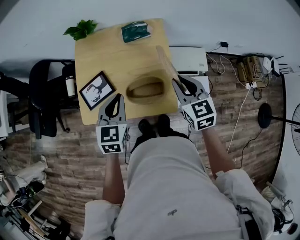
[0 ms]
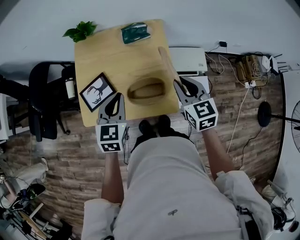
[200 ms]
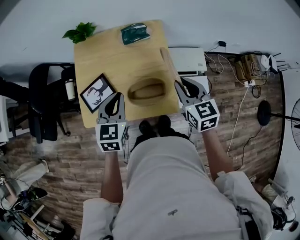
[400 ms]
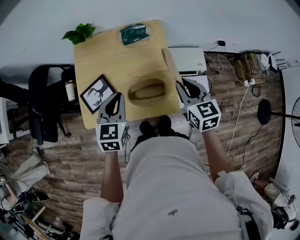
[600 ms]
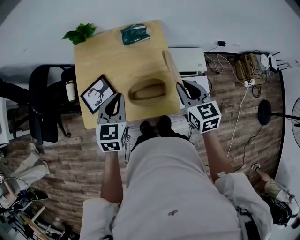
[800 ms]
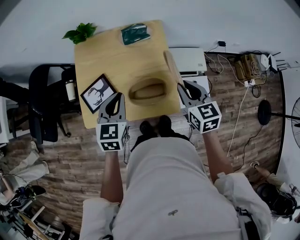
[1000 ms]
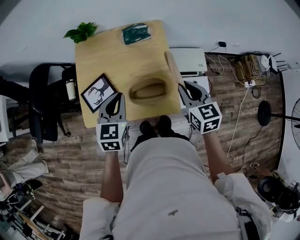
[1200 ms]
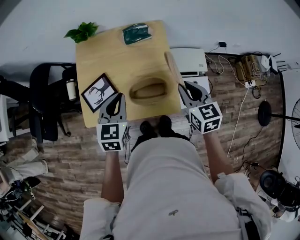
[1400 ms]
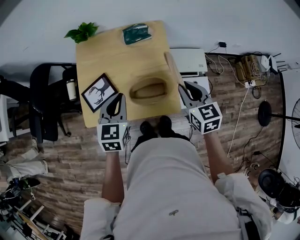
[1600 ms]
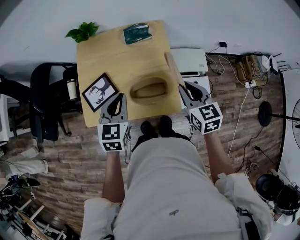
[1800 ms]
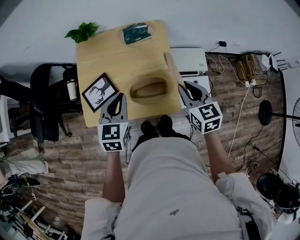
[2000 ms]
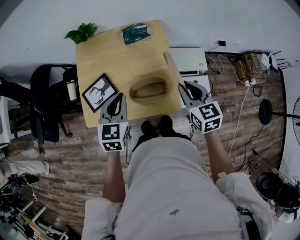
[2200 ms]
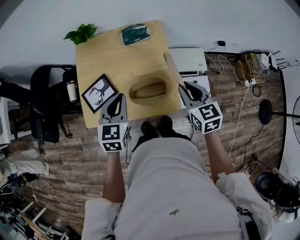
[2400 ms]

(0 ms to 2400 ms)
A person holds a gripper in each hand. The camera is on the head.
0 ms - 1200 ms: The grippers stay close to where they were, moving slightly.
1200 ms - 2400 ms: Both grippers stay put.

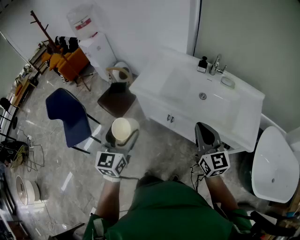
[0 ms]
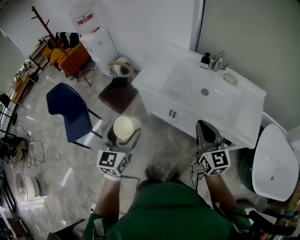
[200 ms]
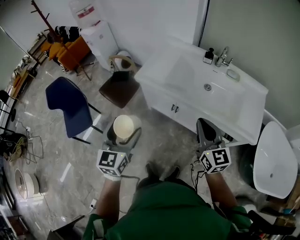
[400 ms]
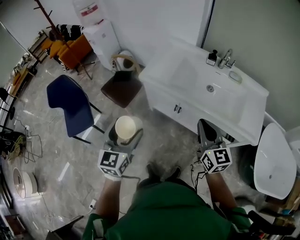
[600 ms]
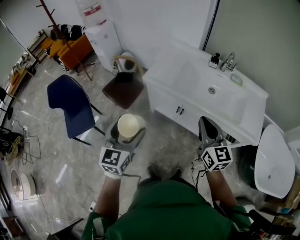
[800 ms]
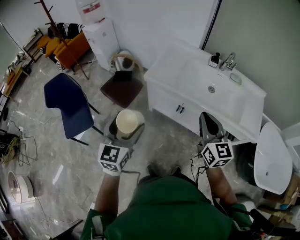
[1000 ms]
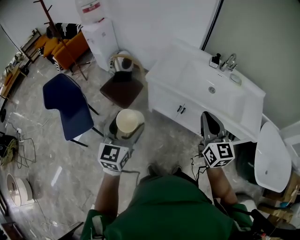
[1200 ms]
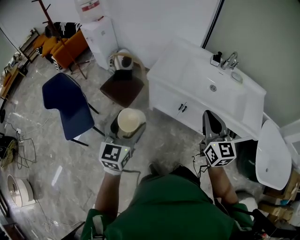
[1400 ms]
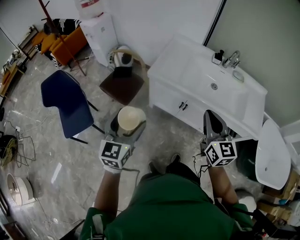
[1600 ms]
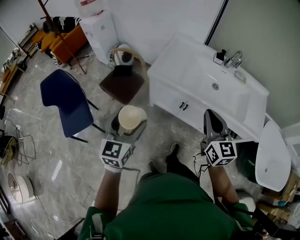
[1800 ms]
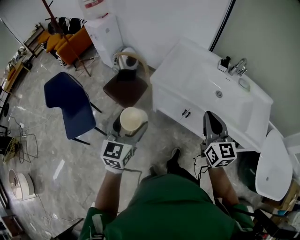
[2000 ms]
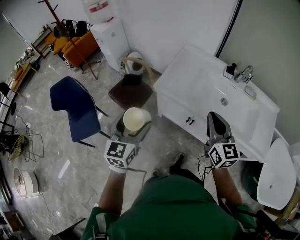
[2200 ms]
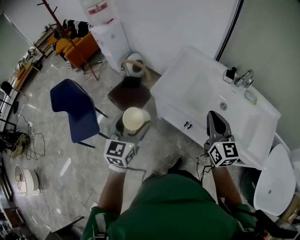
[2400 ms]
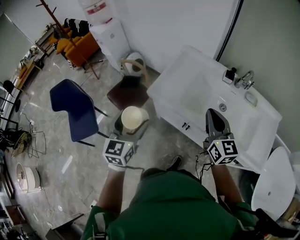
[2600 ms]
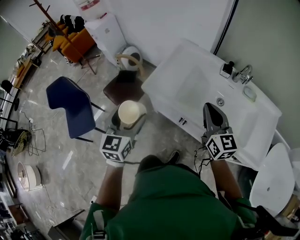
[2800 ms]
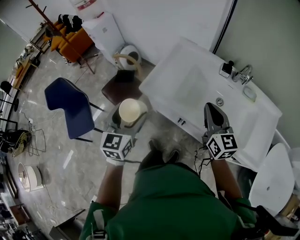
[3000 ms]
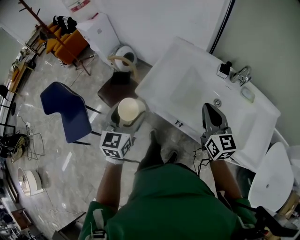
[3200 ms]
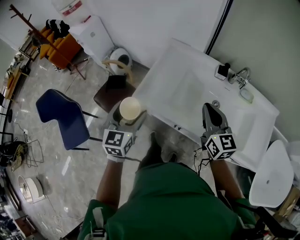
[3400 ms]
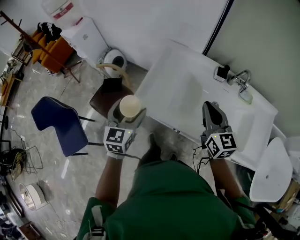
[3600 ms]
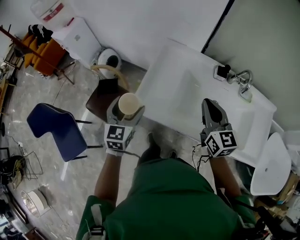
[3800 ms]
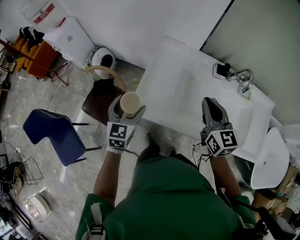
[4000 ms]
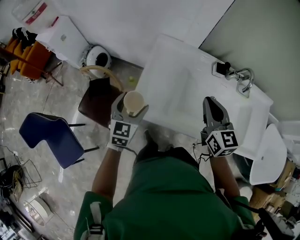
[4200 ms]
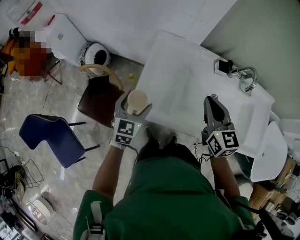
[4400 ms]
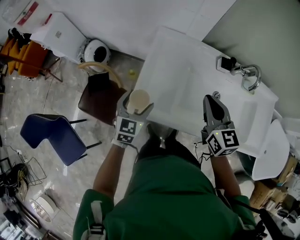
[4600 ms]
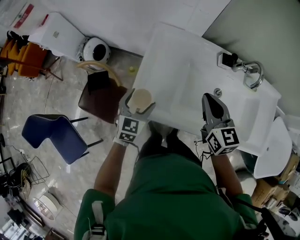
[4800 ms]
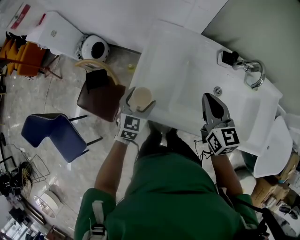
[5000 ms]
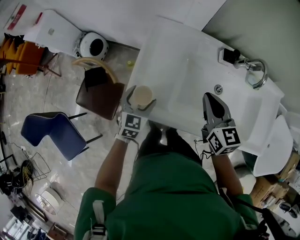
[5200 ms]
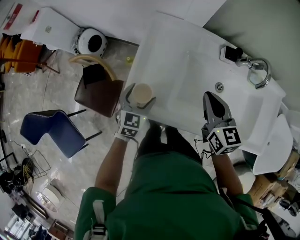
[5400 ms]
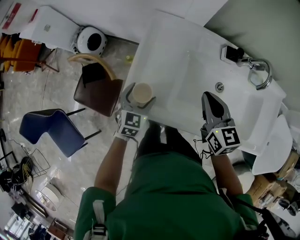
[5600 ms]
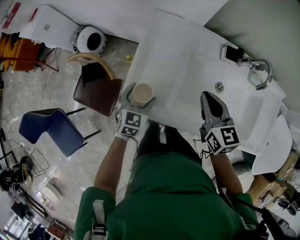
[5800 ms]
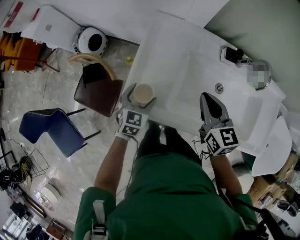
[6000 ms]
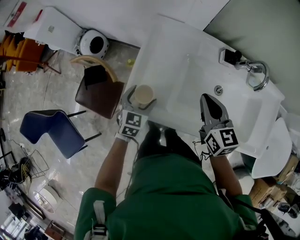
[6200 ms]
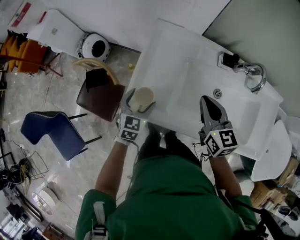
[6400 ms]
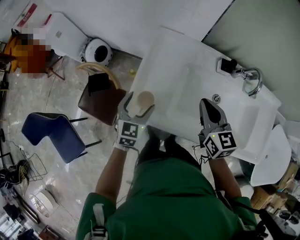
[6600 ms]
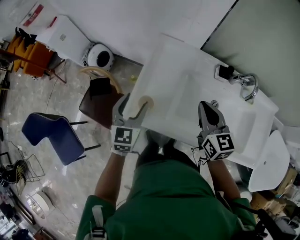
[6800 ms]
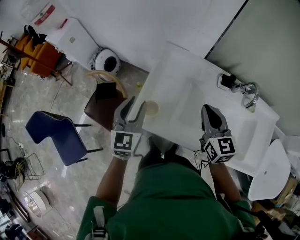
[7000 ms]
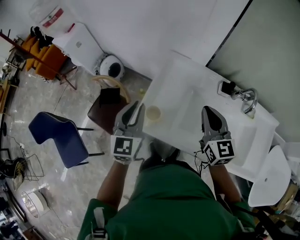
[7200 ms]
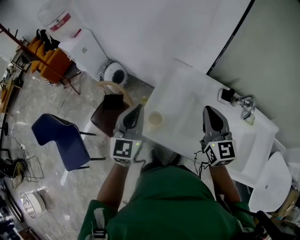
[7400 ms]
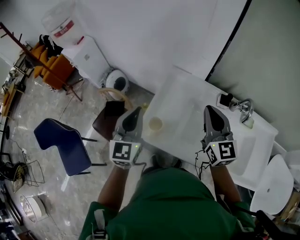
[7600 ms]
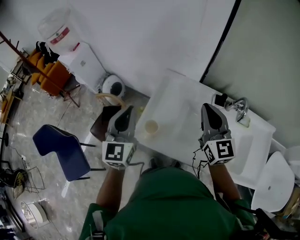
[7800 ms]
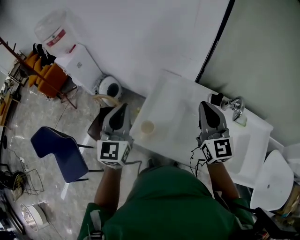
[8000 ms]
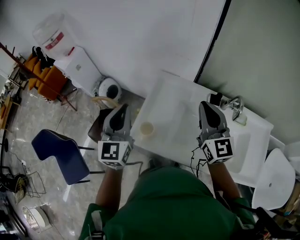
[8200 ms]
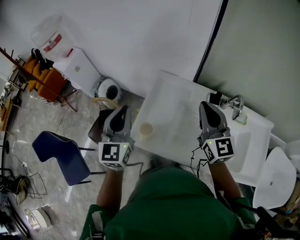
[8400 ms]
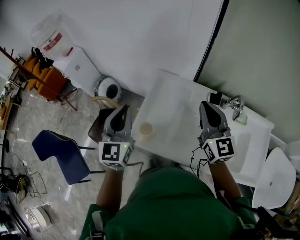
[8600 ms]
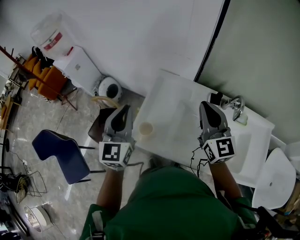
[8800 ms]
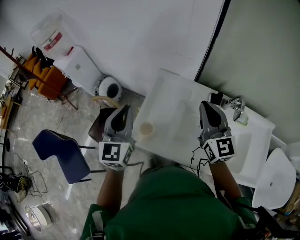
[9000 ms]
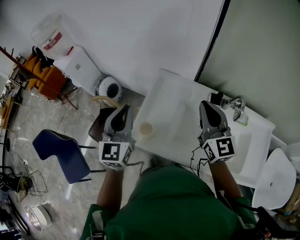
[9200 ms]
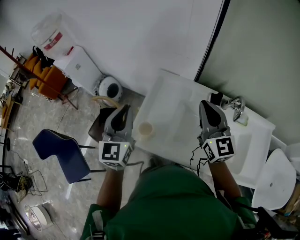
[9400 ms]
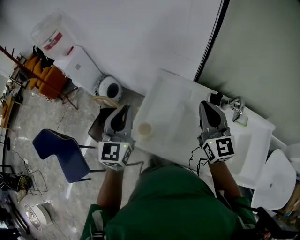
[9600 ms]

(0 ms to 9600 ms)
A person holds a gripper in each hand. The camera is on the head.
0 ms - 1600 ms: Both grippers travel together to the left, approximately 20 cm.
1600 ms - 3200 ms: The grippers both shift forward and to the right by about 30 cm.
3200 ms - 4800 ms: The left gripper heads forward and downward, covering roughly 30 cm, and rotates roughly 30 degrees. Meanwhile the right gripper shifts roughly 20 cm forward and downward.
6400 ms - 8000 ms: The left gripper heads upward, covering approximately 30 cm, tips its fingers upward by roughly 30 degrees, and closes; the right gripper goes about 20 cm upward, and swivels approximately 30 degrees.
8000 ms - 9600 ms: The grippers make only small movements.

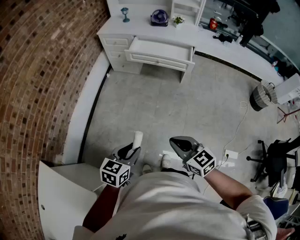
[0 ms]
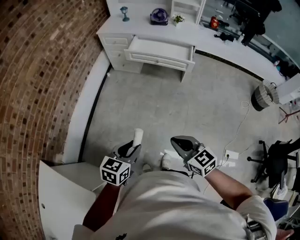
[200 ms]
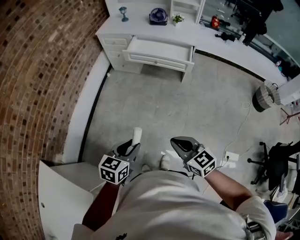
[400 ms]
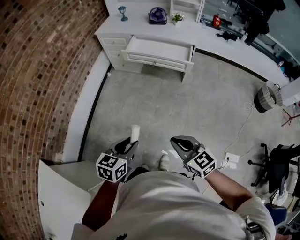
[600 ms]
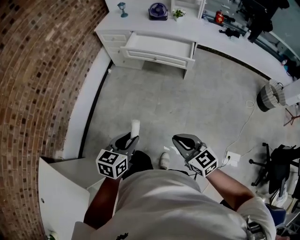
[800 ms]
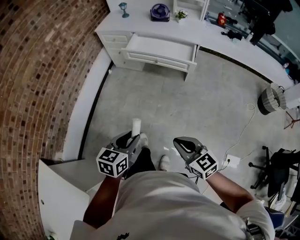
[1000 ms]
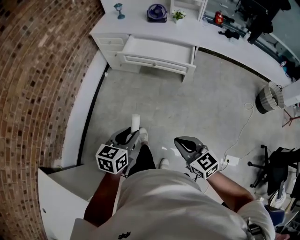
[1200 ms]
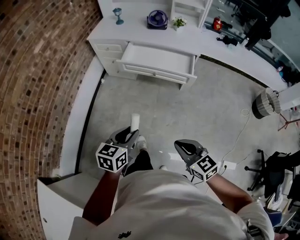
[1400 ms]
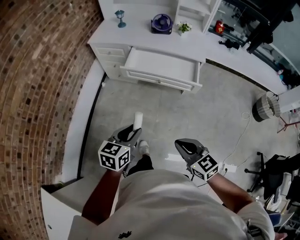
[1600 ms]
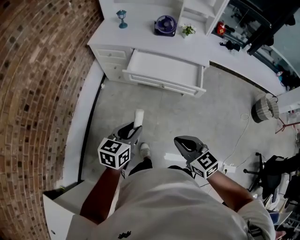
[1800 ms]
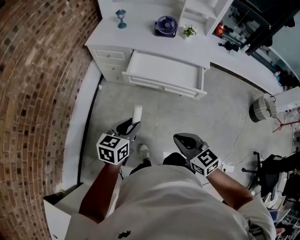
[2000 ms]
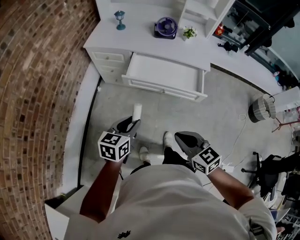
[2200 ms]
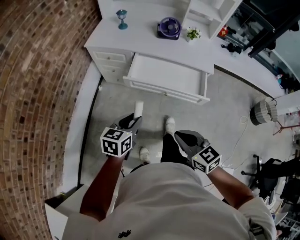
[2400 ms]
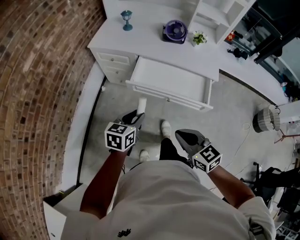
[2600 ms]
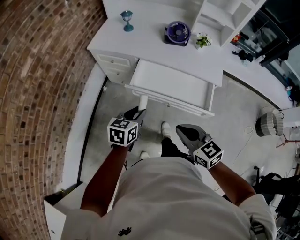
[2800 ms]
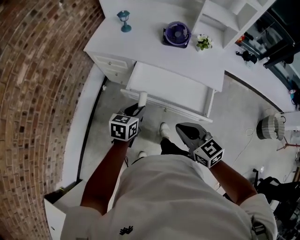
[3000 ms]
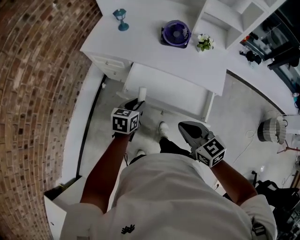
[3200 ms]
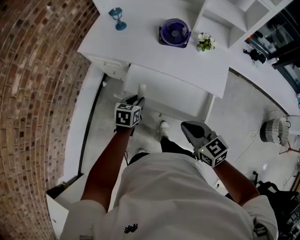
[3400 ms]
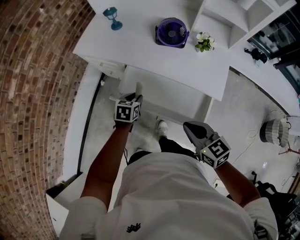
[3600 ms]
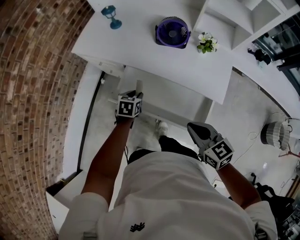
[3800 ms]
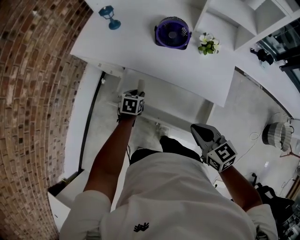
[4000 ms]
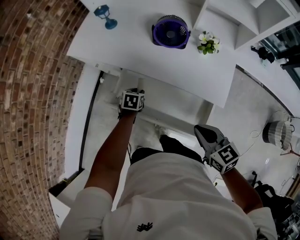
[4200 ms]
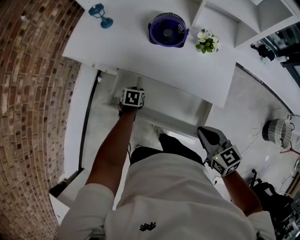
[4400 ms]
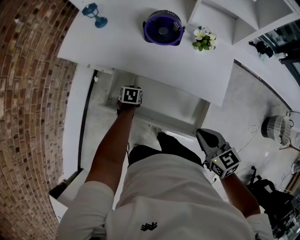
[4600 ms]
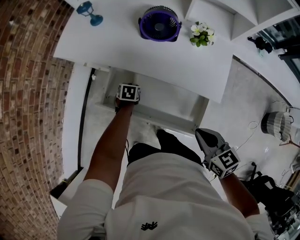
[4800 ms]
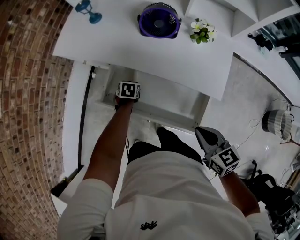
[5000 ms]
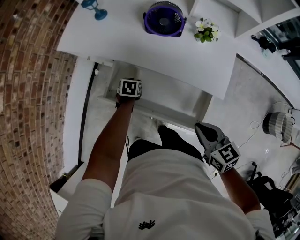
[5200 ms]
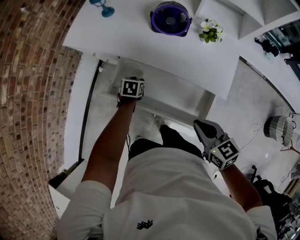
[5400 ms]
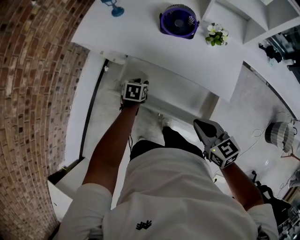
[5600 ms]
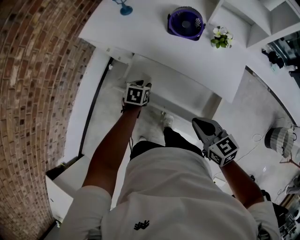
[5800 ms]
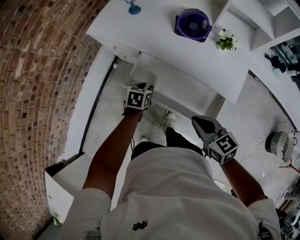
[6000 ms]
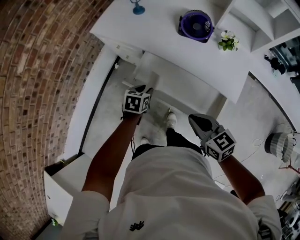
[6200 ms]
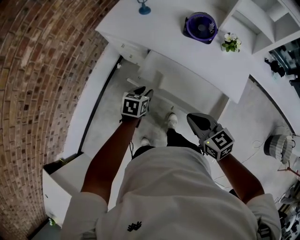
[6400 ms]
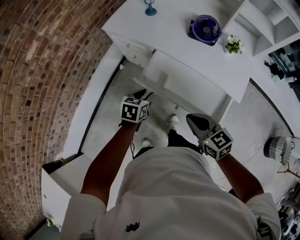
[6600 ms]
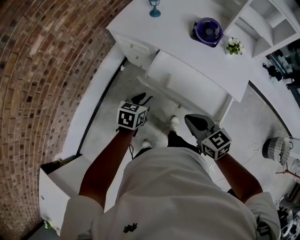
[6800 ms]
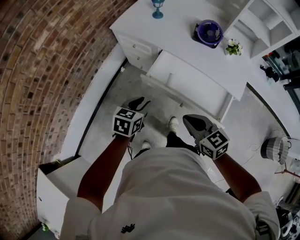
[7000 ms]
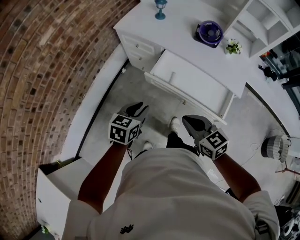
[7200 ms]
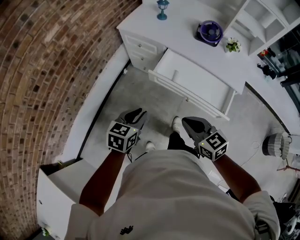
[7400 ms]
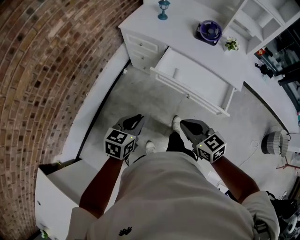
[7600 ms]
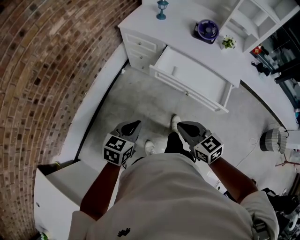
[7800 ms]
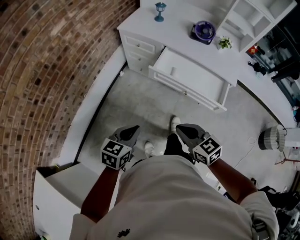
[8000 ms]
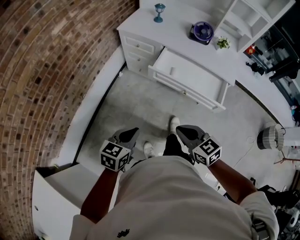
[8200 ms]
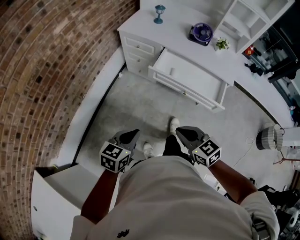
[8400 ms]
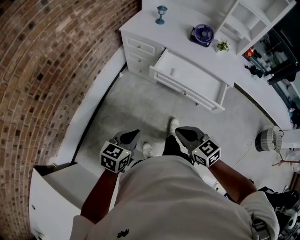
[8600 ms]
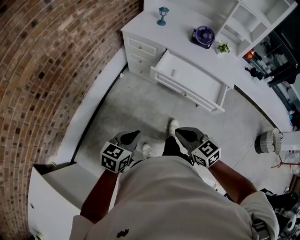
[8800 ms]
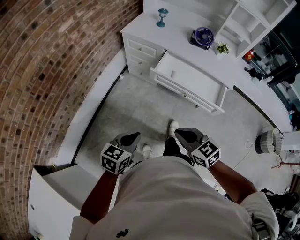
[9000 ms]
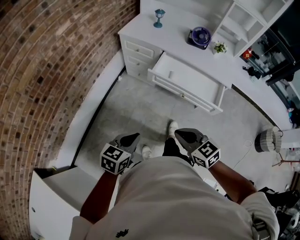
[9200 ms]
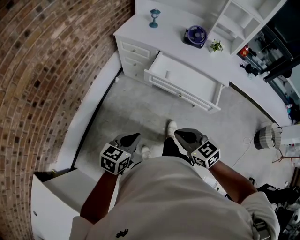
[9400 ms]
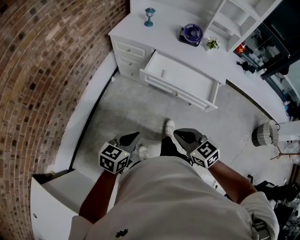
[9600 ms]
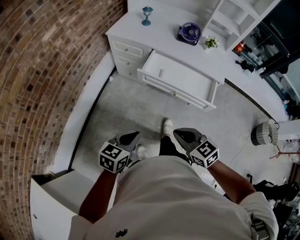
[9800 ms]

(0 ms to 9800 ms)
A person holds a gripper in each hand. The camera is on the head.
0 ms - 1400 ms: The left gripper moves forward, some 25 cm; the right gripper moves forward and to the right, some 20 cm.
1400 ms - 2800 ms: Both grippers move forward, about 35 cm.
2800 ms - 4200 ms: The right gripper heads to the right and forward, covering roughly 30 cm. The left gripper shifts approximately 35 cm forward, downward and to the right, and swivels roughly 30 degrees.
4200 ms - 5600 ms: The left gripper travels downward and back again, approximately 5 cm each way.
5600 ms - 7000 ms: The left gripper moves upward, backward and to the left, approximately 30 cm, and changes its angle by about 20 degrees. The right gripper goes roughly 20 cm to the left.
7000 ms - 8400 ms: Both grippers move backward and to the left, roughly 25 cm. The left gripper closes its fingers.
8400 ms - 9800 ms: The grippers make only small movements.

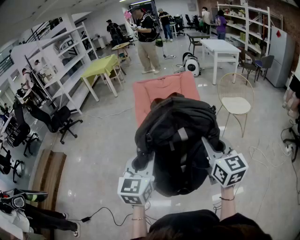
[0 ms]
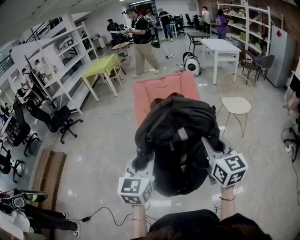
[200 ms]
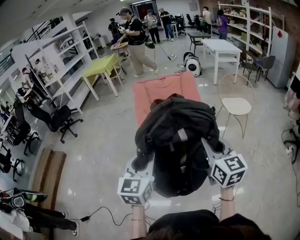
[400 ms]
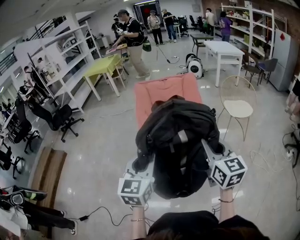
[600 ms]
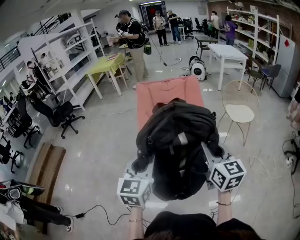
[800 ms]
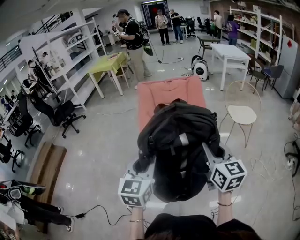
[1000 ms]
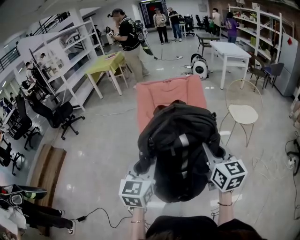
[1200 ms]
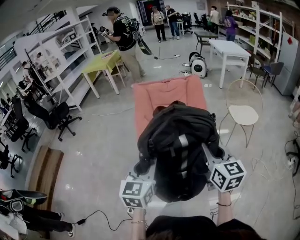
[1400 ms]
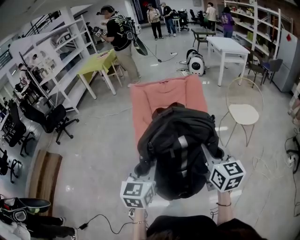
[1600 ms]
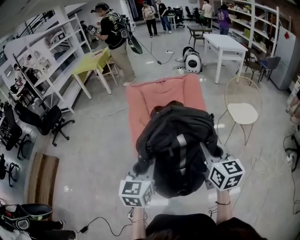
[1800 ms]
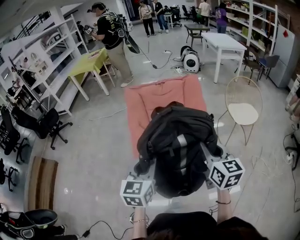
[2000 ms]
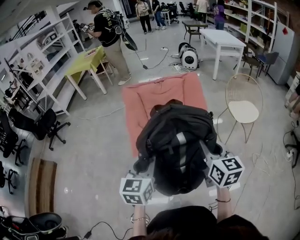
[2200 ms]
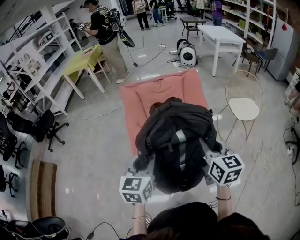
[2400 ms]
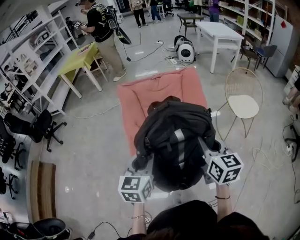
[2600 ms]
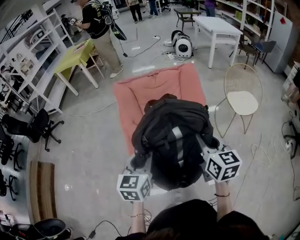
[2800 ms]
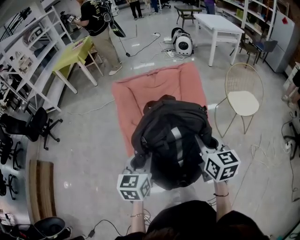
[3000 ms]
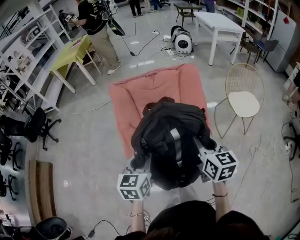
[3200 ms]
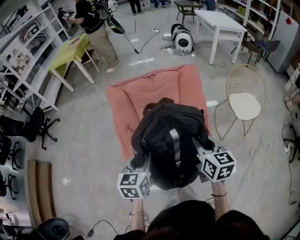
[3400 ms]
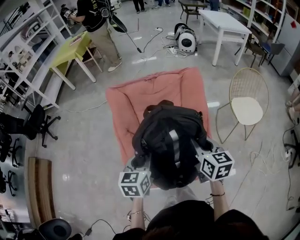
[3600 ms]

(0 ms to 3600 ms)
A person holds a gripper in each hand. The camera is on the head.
0 ms - 1800 ms: Both grippers travel together forward, approximately 25 cm.
1800 ms - 3600 ms: Both grippers travel together forward, roughly 25 cm.
